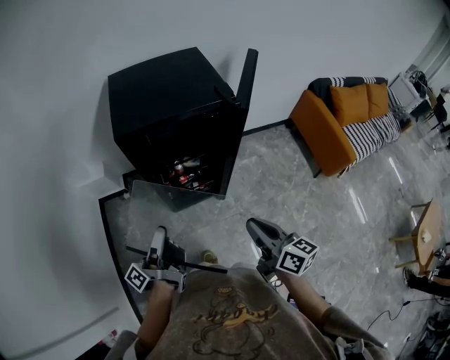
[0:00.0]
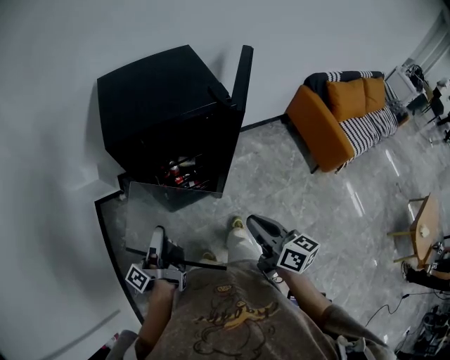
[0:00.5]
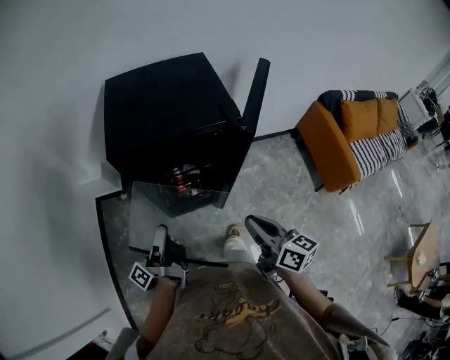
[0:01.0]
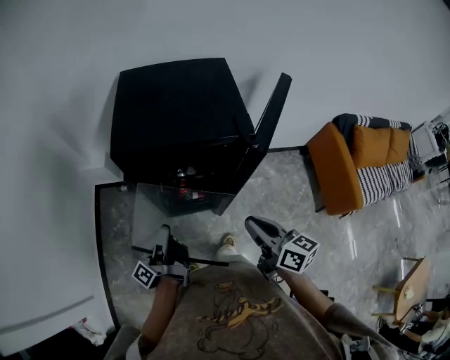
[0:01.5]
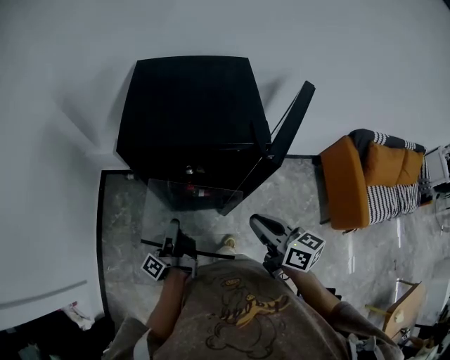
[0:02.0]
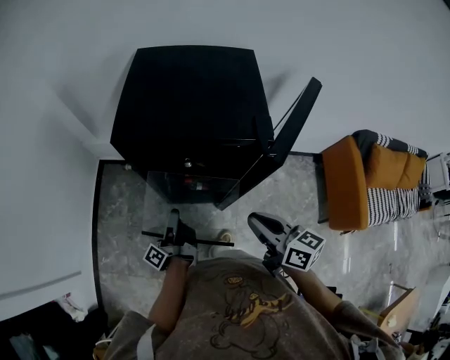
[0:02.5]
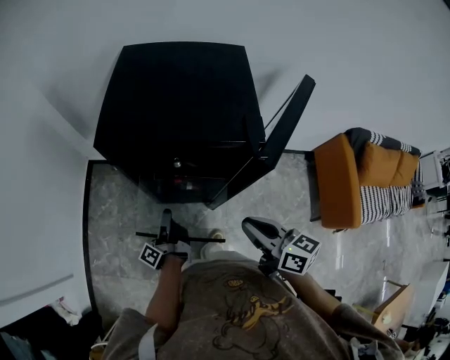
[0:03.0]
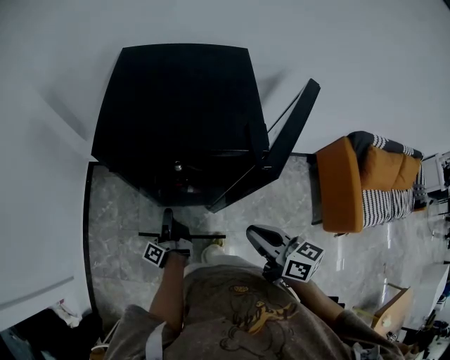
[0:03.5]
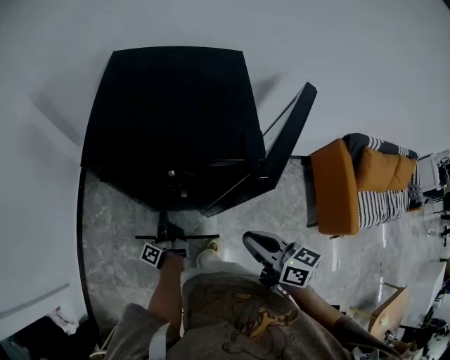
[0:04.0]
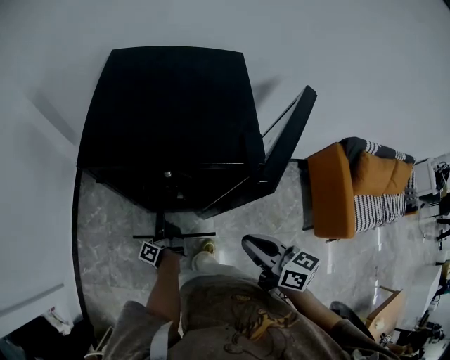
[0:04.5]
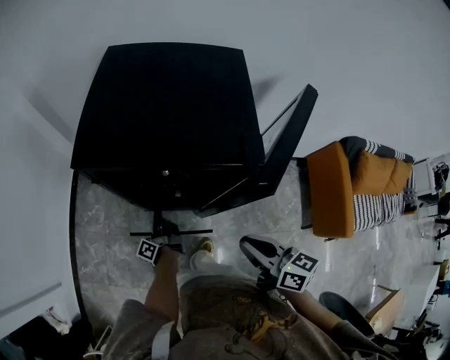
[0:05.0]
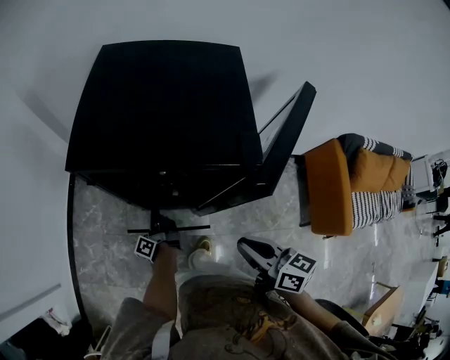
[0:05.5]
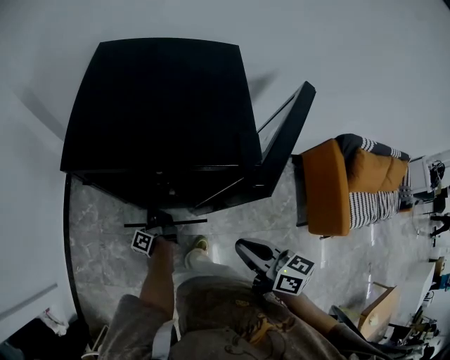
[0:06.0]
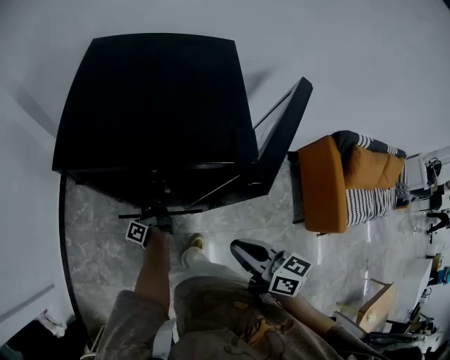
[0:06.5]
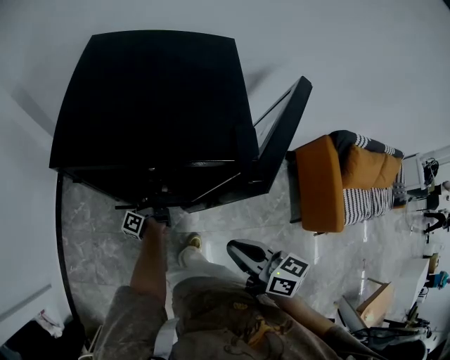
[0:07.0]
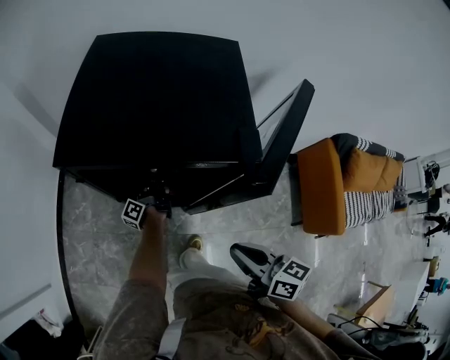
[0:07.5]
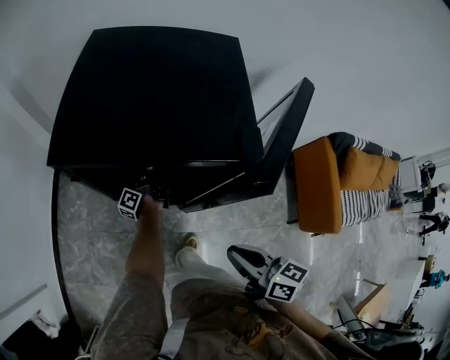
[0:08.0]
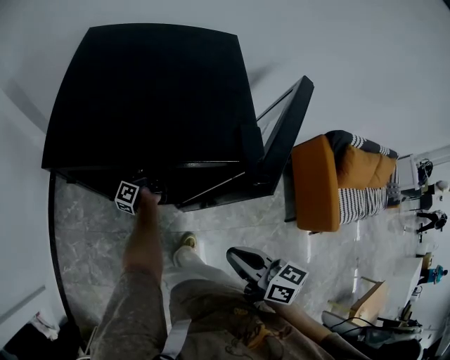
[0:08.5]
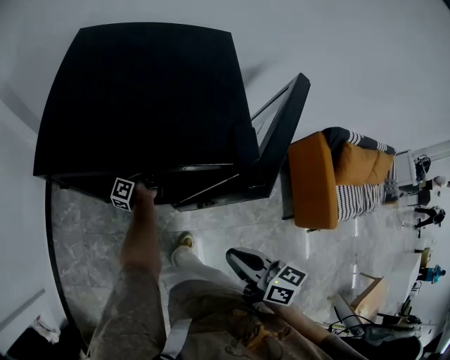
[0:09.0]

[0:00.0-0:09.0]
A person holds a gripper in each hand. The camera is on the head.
0:00.0 to 0:02.0: The right gripper moves some 20 cm, and rotates some 20 degrees.

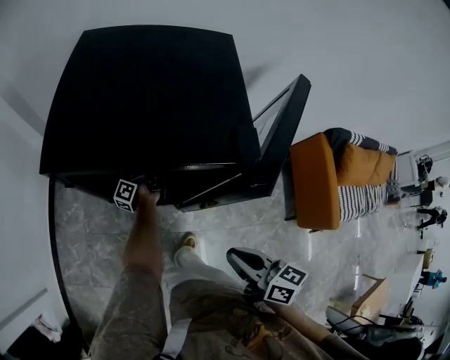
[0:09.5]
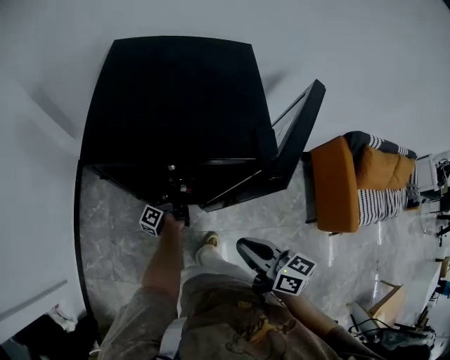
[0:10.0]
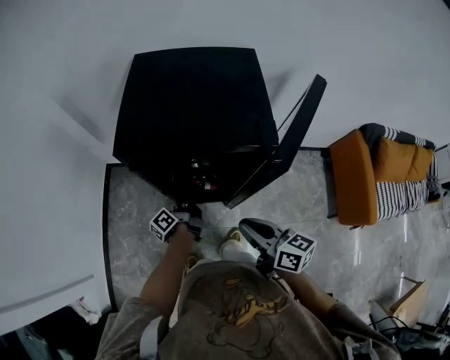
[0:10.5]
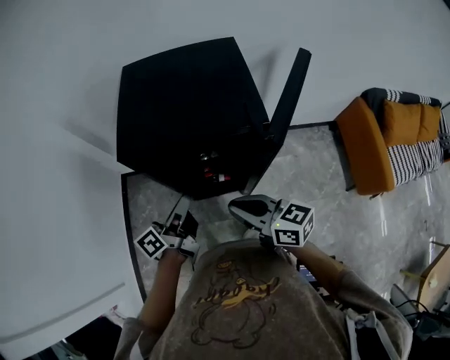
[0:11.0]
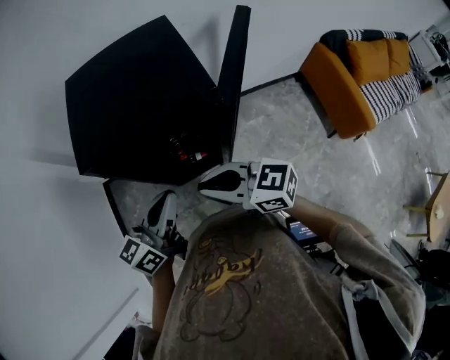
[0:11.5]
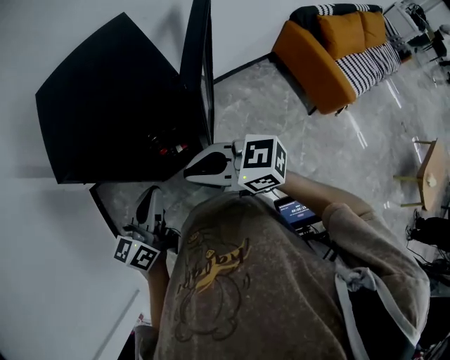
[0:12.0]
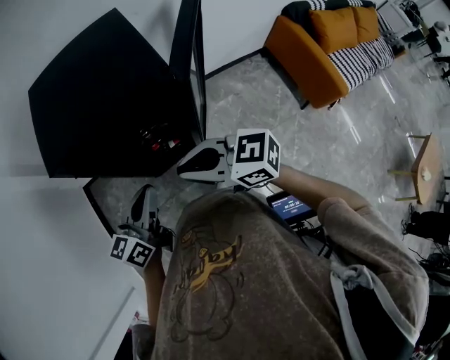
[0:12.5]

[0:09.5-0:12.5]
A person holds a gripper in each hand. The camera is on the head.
0:09.5 to 0:11.0: The right gripper ends up approximately 15 cm from where it was, and swivels approximately 20 degrees.

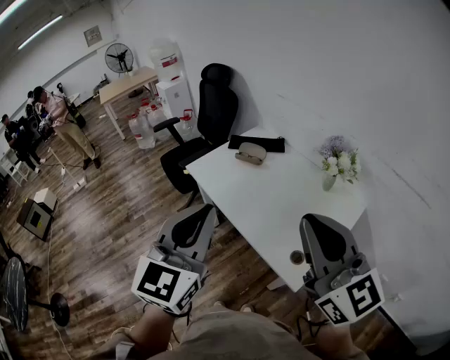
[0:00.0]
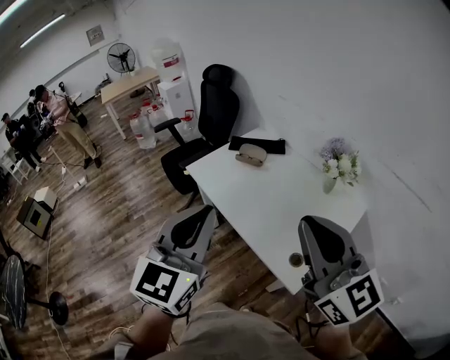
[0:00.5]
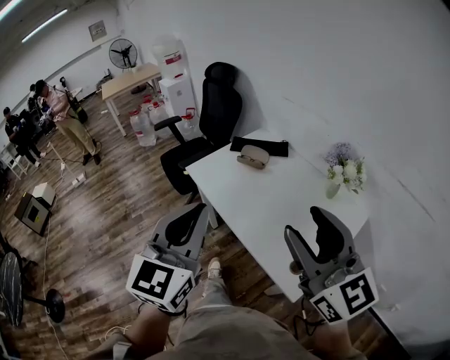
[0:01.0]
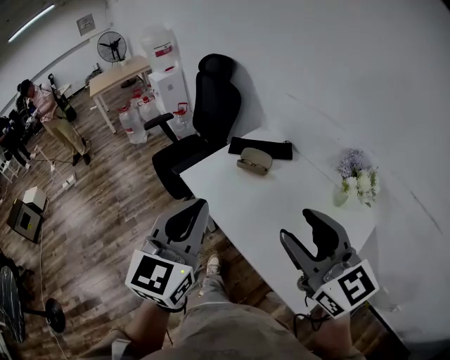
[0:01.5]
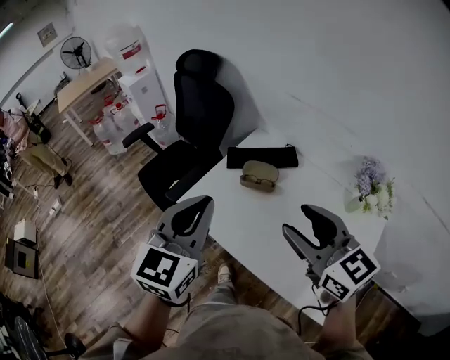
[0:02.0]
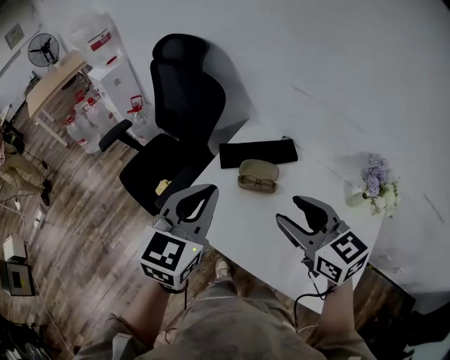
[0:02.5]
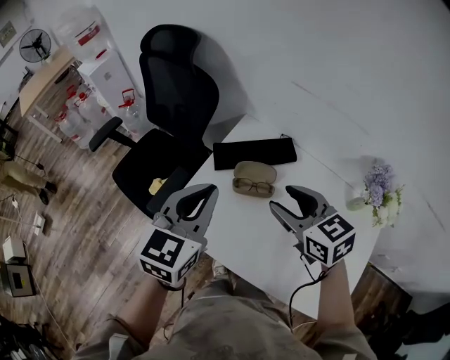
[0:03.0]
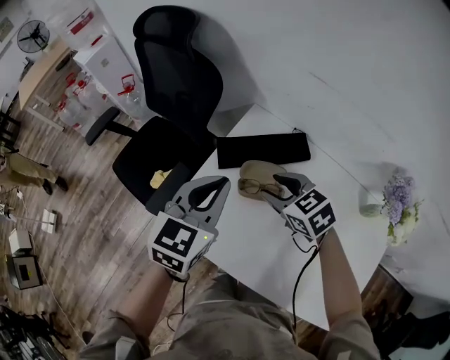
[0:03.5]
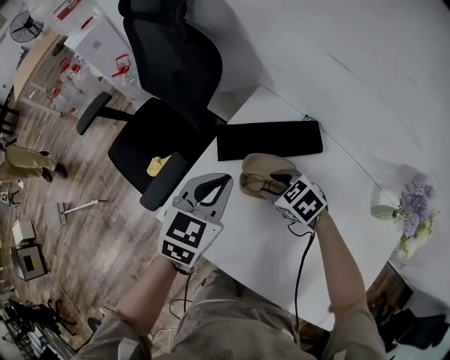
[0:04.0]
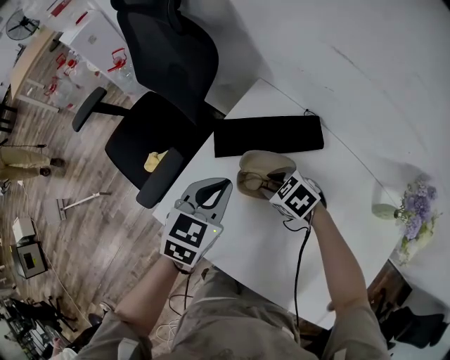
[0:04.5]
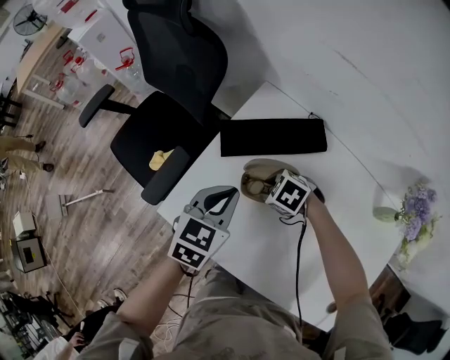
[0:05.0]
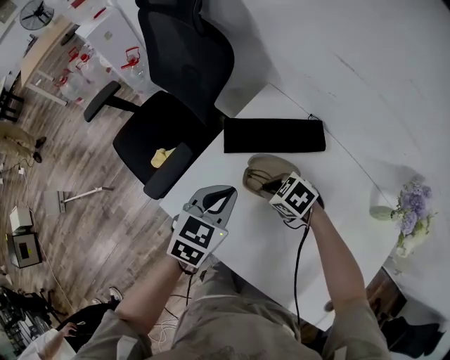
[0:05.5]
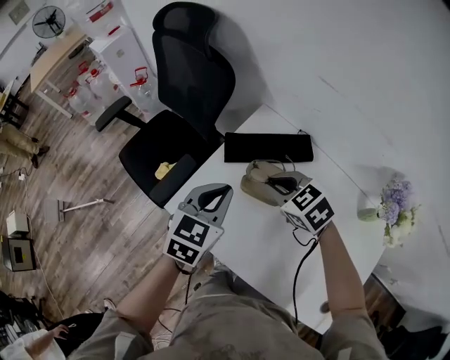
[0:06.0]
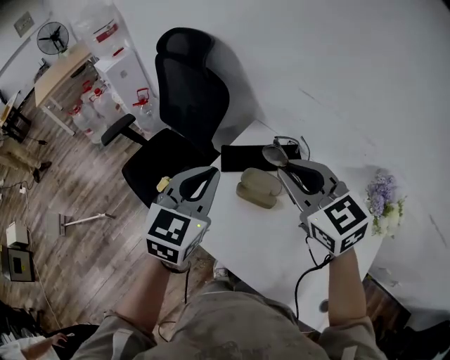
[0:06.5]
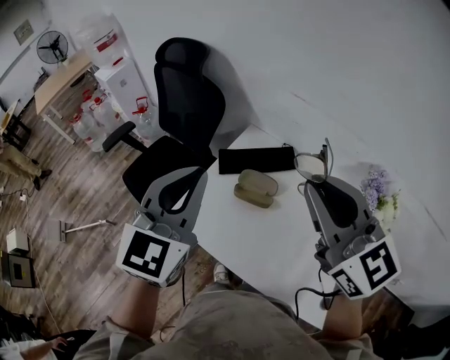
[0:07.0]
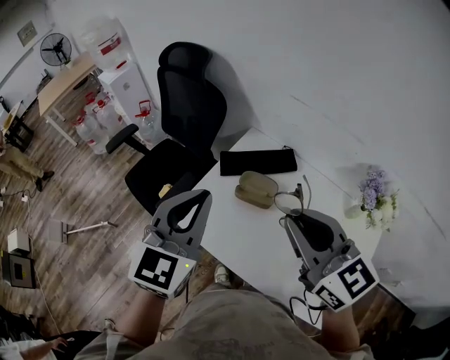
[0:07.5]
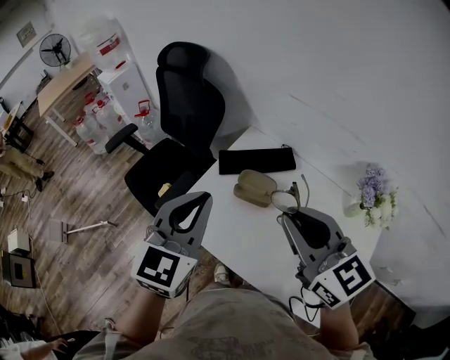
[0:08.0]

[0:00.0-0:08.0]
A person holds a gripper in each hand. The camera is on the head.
0:00.0 to 0:02.0: The two grippers go approximately 35 cm forward. The right gripper turns by about 20 degrees, and opens its fingers.
0:02.0 to 0:04.0: The right gripper shifts roughly 50 cm downward and forward, and angles its fingers downward, by about 50 degrees; the left gripper travels forward and downward by approximately 35 cm, and swivels some 30 degrees.
0:04.0 to 0:06.0: The right gripper is displaced upward by about 15 cm, and closes its fingers; the left gripper shifts by roughly 10 cm.
0:06.0 to 0:08.0: The grippers both shift upward and backward by about 25 cm. The left gripper swivels some 20 degrees. The right gripper angles its fingers upward, by roughly 40 degrees.

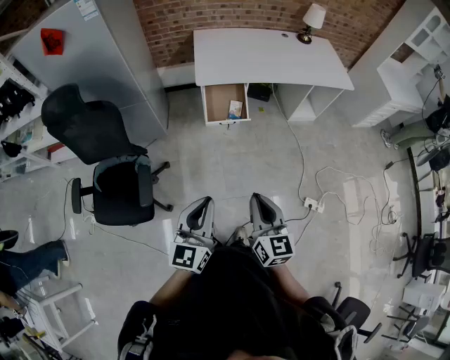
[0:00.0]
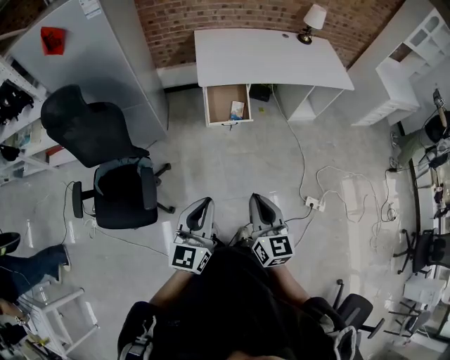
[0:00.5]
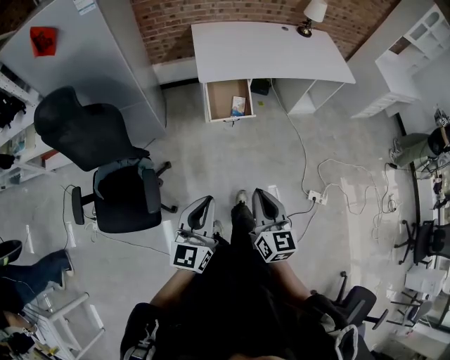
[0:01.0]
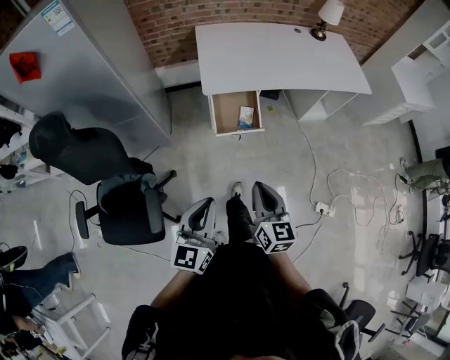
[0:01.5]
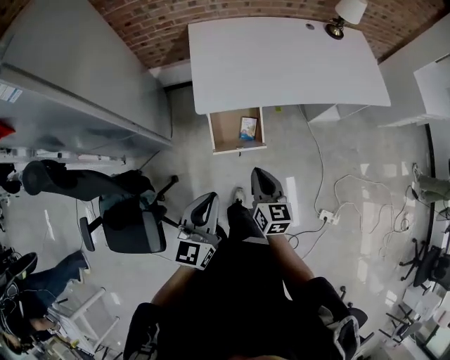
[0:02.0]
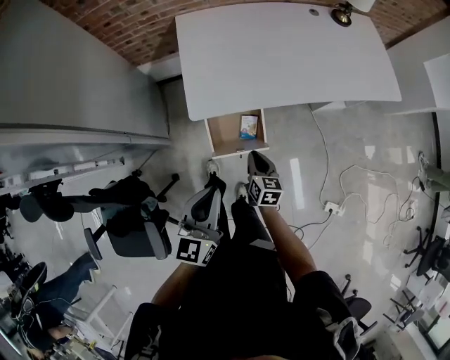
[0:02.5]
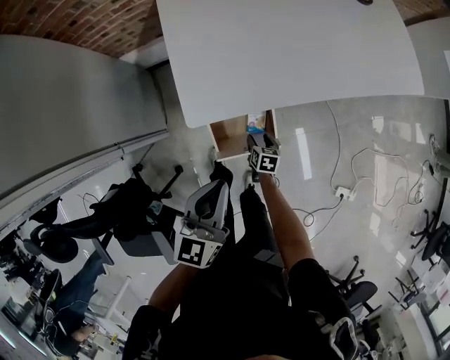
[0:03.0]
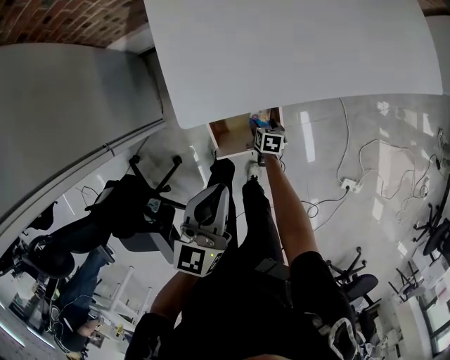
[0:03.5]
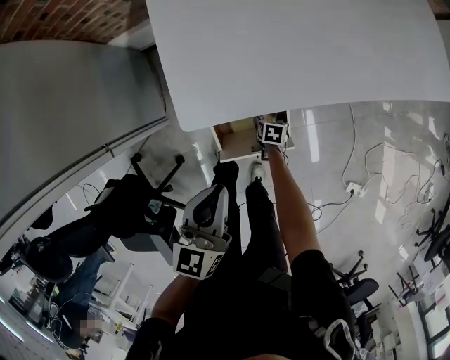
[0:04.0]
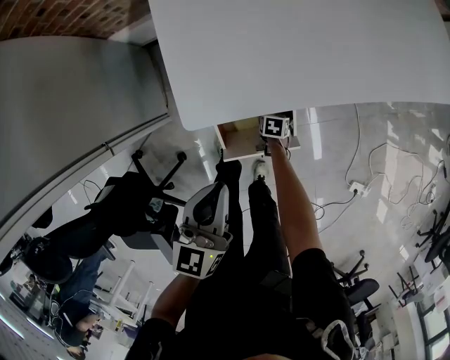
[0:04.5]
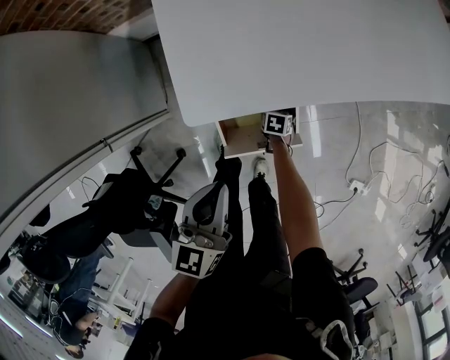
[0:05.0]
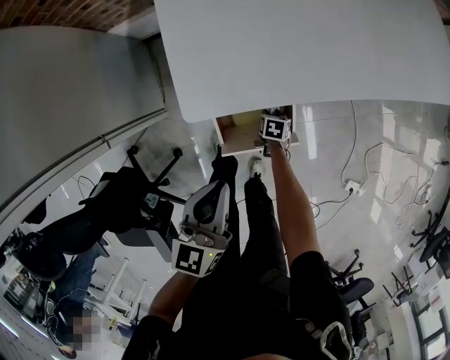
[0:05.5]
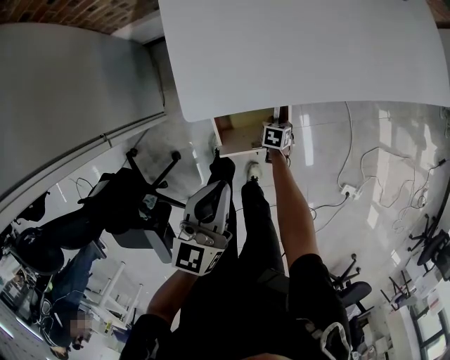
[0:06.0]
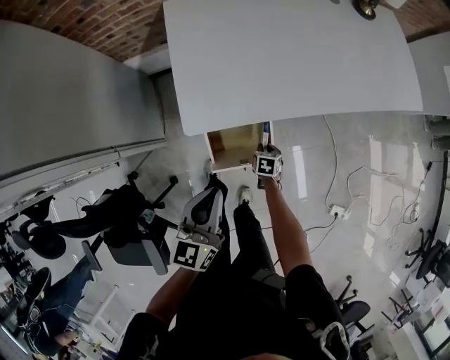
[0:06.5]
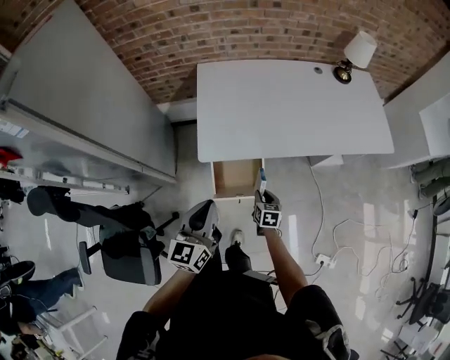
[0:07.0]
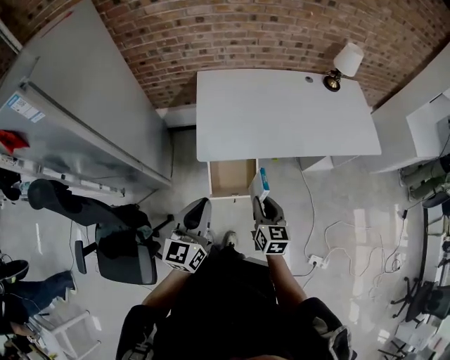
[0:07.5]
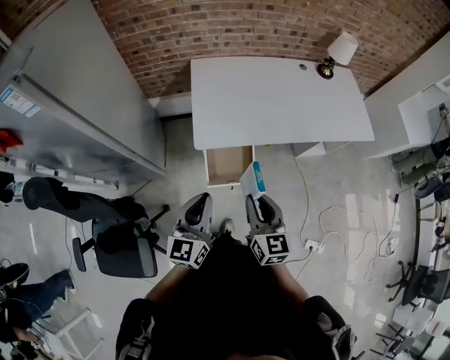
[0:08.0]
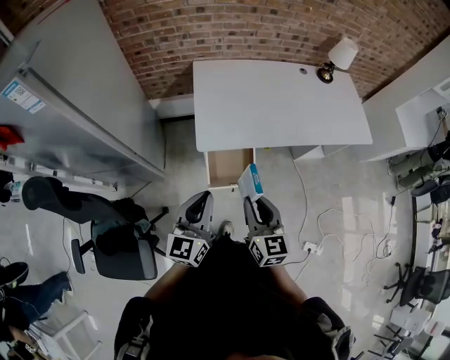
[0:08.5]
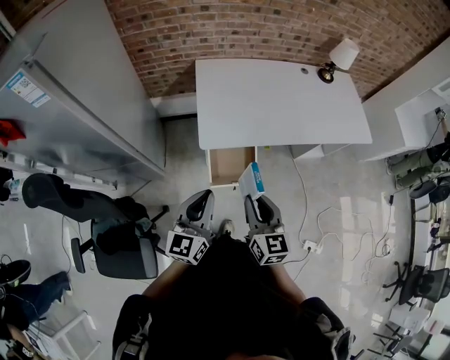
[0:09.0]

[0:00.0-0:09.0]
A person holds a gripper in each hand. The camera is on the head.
0:00.0 to 0:02.0: Both grippers travel together forward, roughly 40 cm.
0:02.0 to 0:04.5: The right gripper goes approximately 60 cm downward and forward, points its fingers roughly 50 degrees further downward, and opens its fingers. Meanwhile the left gripper shifts about 35 cm forward and downward.
0:04.5 to 0:07.0: The left gripper shifts about 20 cm upward and backward. Meanwhile the right gripper is displaced upward by roughly 35 cm, swivels some 30 degrees, and closes.
0:07.0 to 0:09.0: The right gripper shifts some 35 cm upward, and rotates about 30 degrees. Meanwhile the left gripper shifts some 10 cm upward, to the left and backward.
